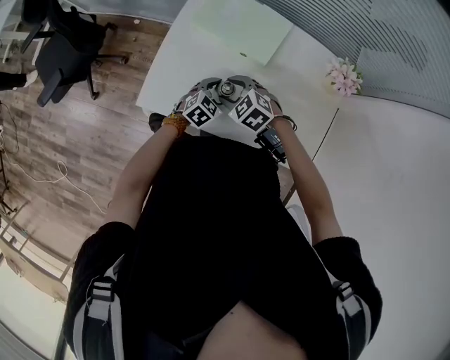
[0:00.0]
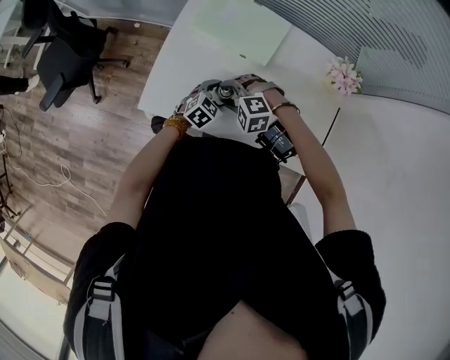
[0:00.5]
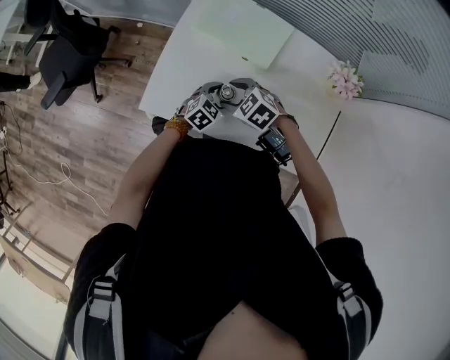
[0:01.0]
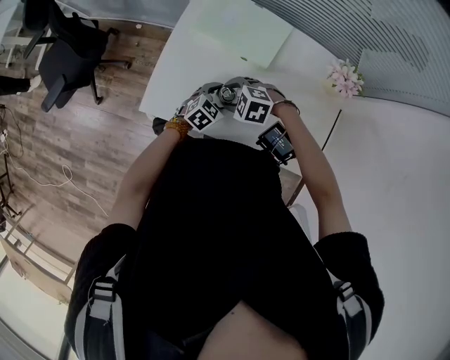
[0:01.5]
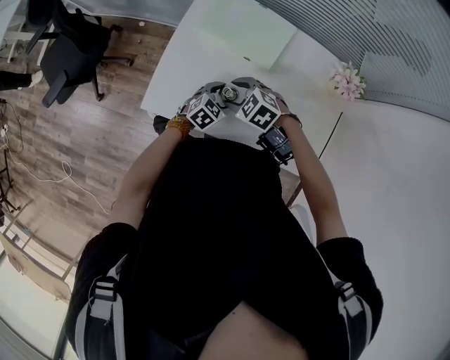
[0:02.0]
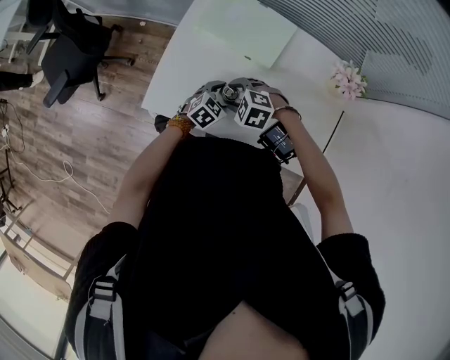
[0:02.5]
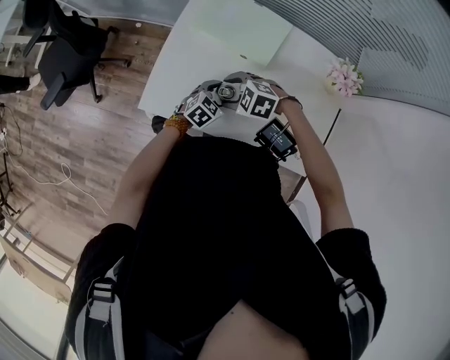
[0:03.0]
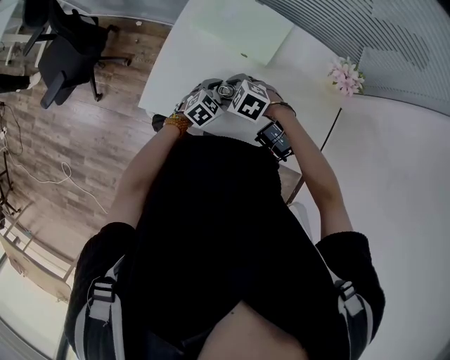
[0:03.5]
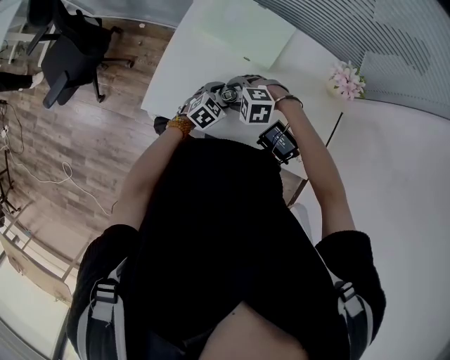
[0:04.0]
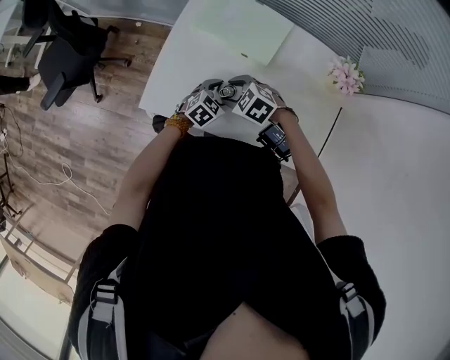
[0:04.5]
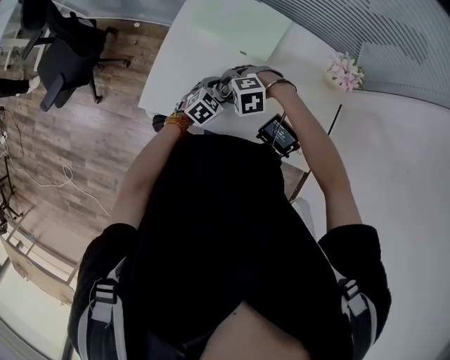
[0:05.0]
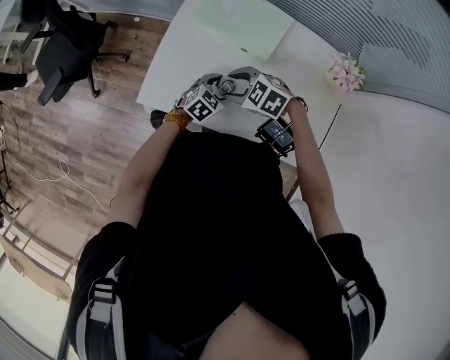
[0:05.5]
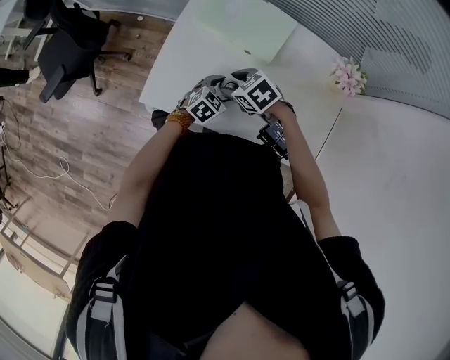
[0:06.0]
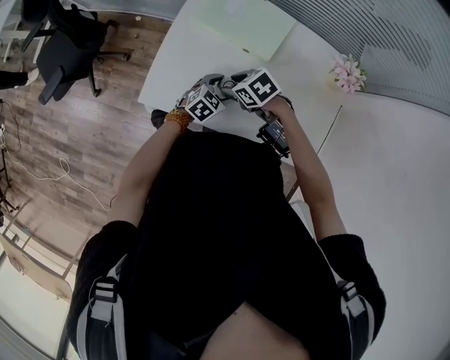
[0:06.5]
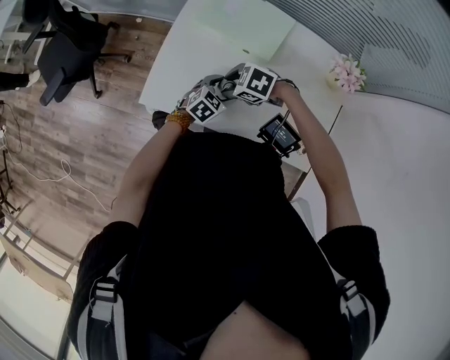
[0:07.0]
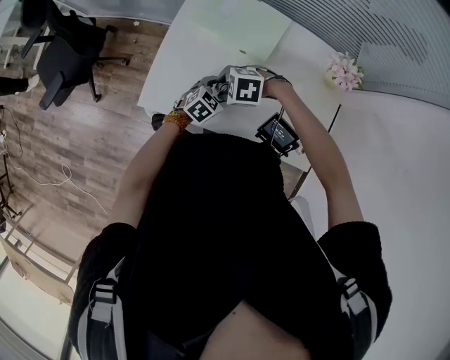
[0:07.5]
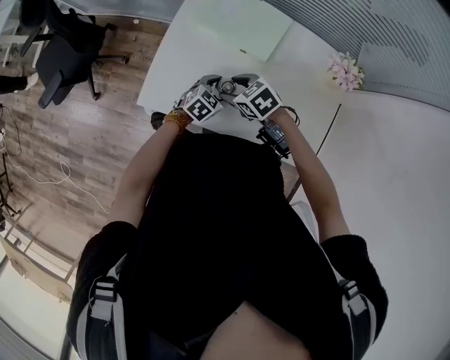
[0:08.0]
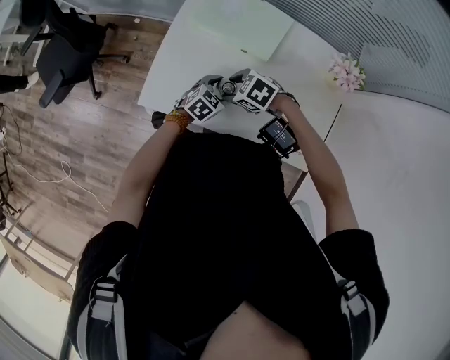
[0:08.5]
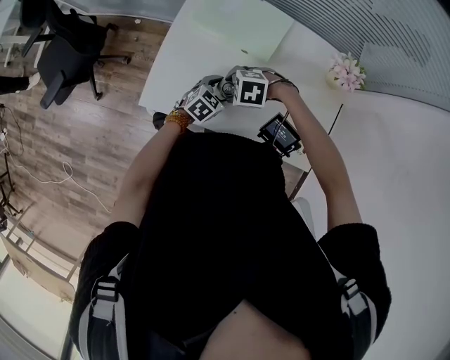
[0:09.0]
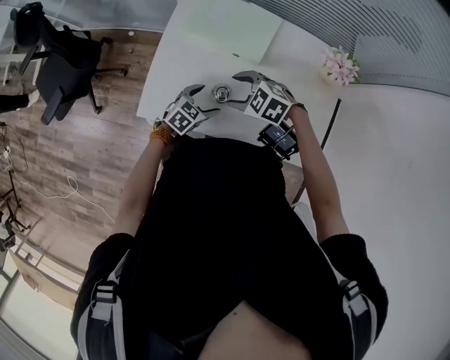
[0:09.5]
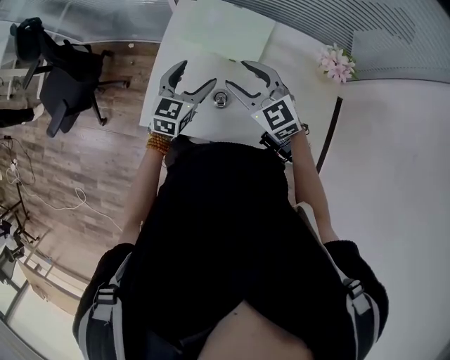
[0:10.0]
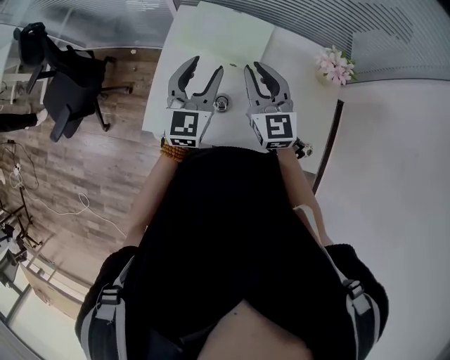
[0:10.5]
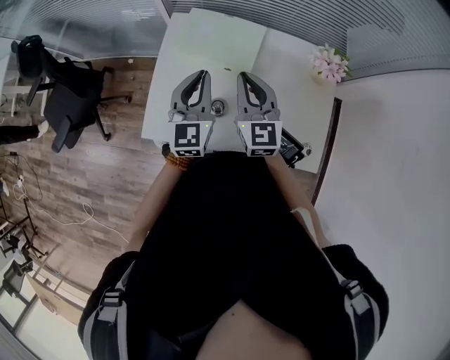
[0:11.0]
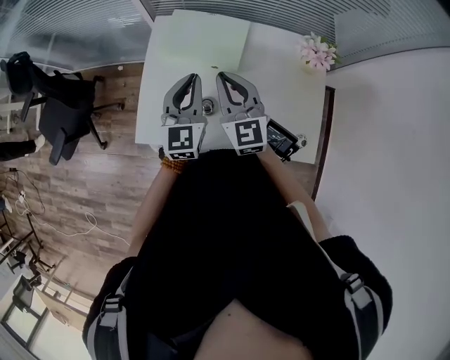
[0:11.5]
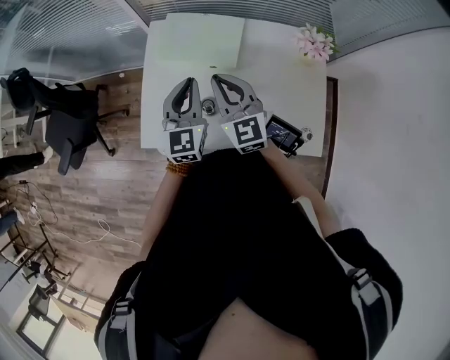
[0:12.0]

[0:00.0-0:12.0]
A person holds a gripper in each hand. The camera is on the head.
0:02.0 to 0:04.0: The right gripper changes its angle by about 30 degrees.
0:04.0 to 0:06.0: The right gripper rotates around the line of its fingers by roughly 50 degrees, clockwise from behind.
0:08.0 to 0:10.0: The two grippers go some 15 cm upward. The right gripper tilts its fingers roughly 30 degrees upward, while the left gripper rotates some 30 degrees.
0:10.0 to 0:12.0: The right gripper turns by approximately 30 degrees, and closes up; the left gripper heads upward, covering approximately 5 cm, and closes up.

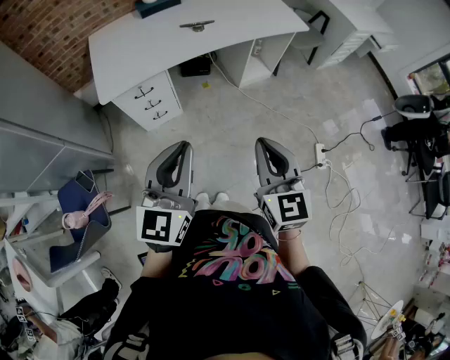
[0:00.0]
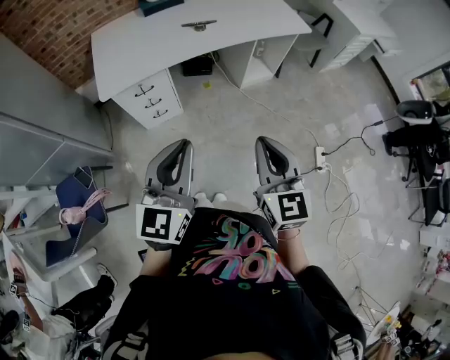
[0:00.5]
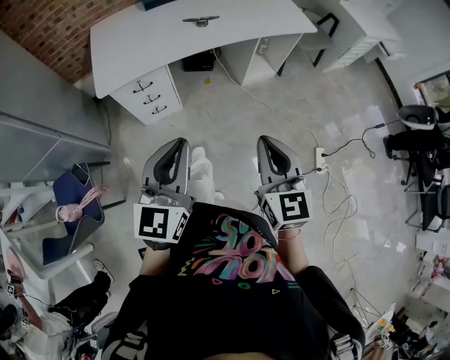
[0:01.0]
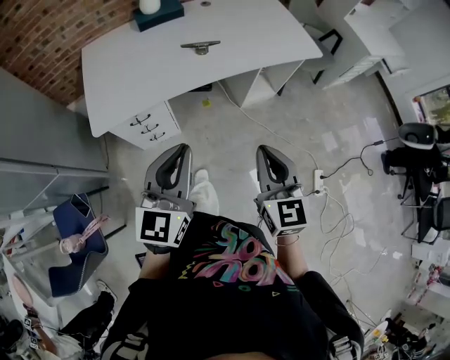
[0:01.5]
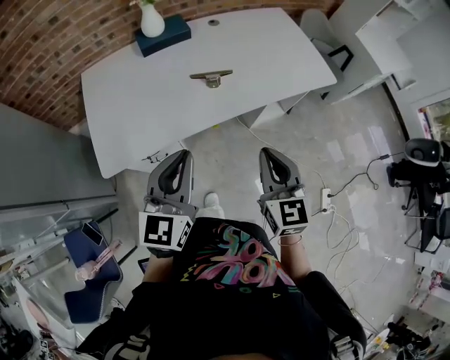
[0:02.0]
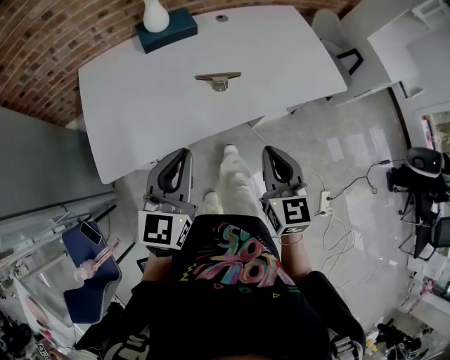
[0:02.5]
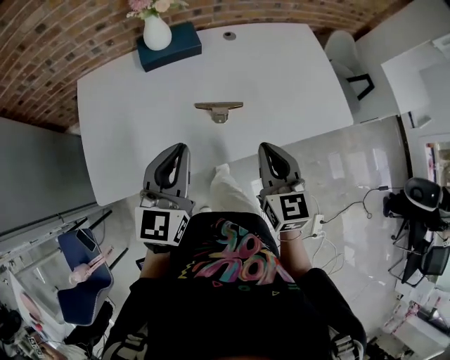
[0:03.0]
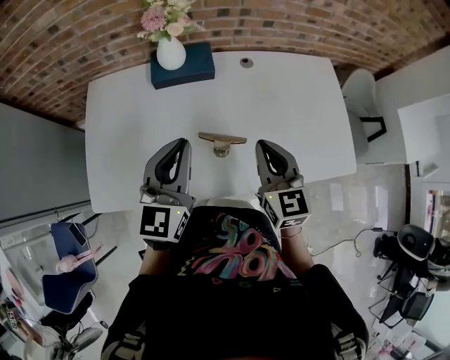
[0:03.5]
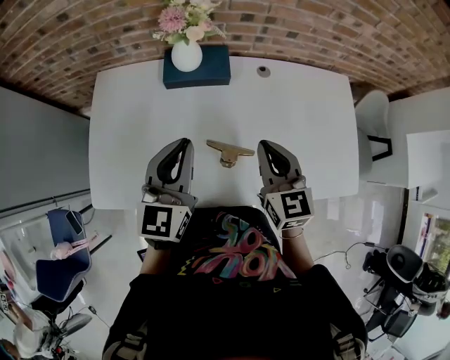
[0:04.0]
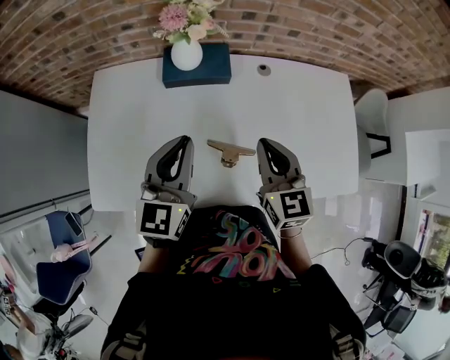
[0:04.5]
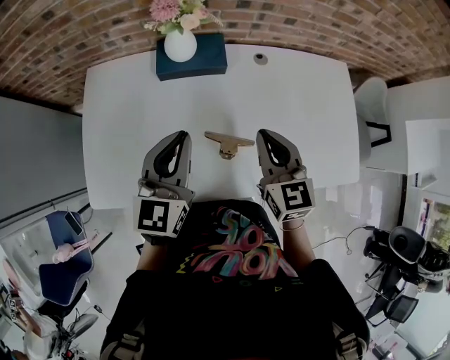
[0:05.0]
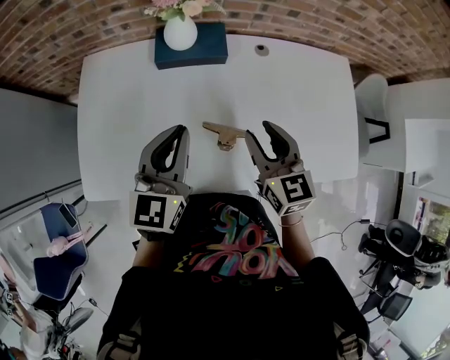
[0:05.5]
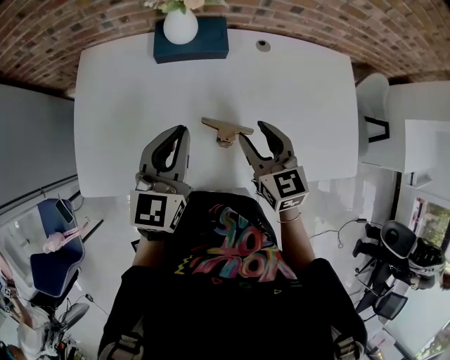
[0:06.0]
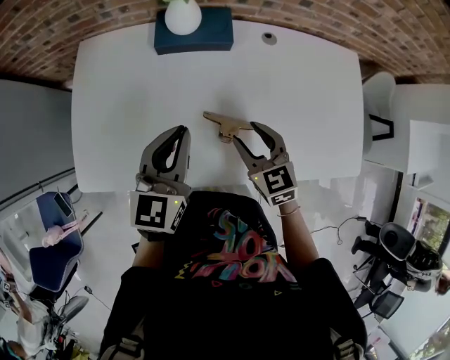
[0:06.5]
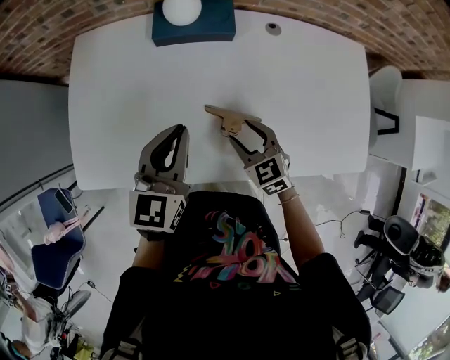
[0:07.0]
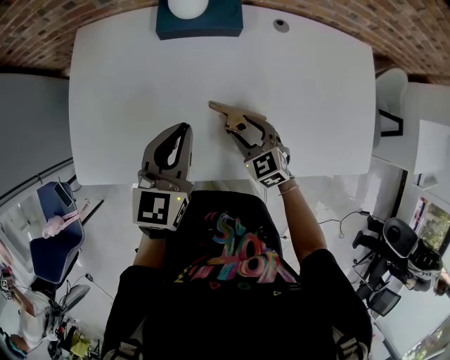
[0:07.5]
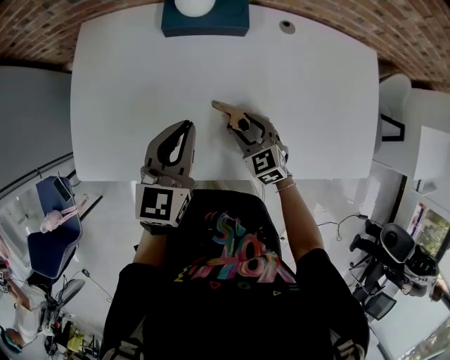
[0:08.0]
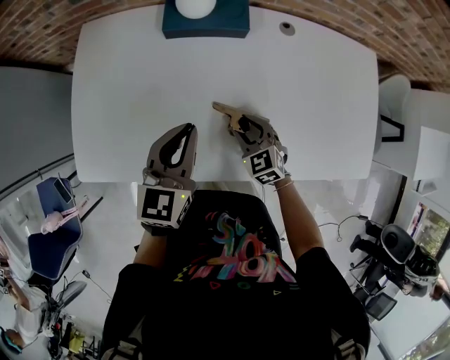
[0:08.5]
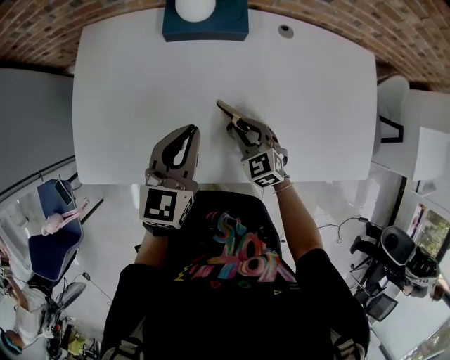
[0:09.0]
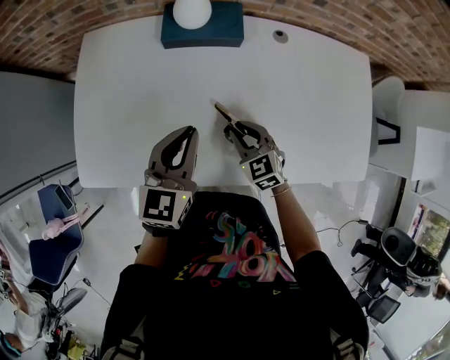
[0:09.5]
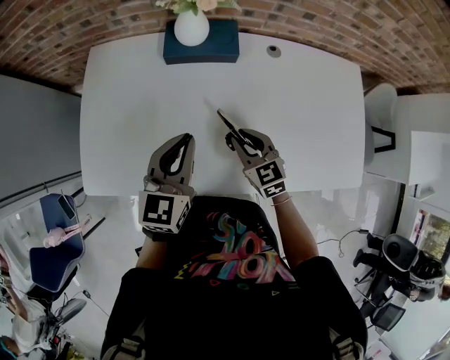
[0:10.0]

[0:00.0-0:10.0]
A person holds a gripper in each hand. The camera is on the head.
0:00.0 to 0:02.0: The grippers both shift forward by roughly 40 cm.
0:02.0 to 0:04.0: The grippers both shift forward by about 40 cm. The right gripper turns by approximately 30 degrees; the left gripper rotates some 20 degrees.
0:04.0 to 0:06.0: Both grippers move downward, approximately 5 cm. The right gripper opens its fingers.
0:06.0 to 0:08.0: The right gripper heads downward, covering roughly 20 cm, and rotates approximately 30 degrees. The left gripper goes roughly 10 cm downward.
0:08.0 to 0:10.0: The right gripper shifts roughly 10 cm upward, and closes.

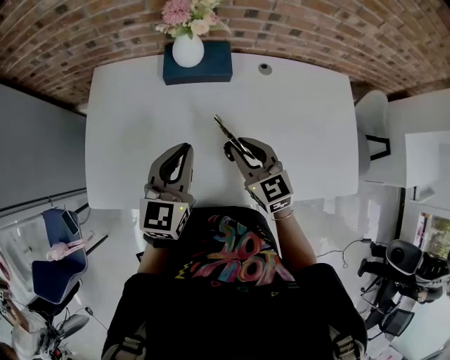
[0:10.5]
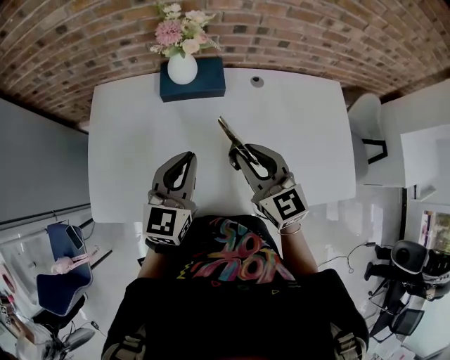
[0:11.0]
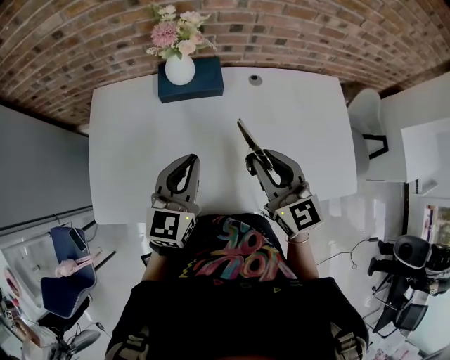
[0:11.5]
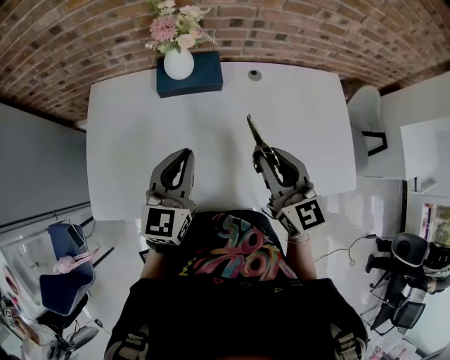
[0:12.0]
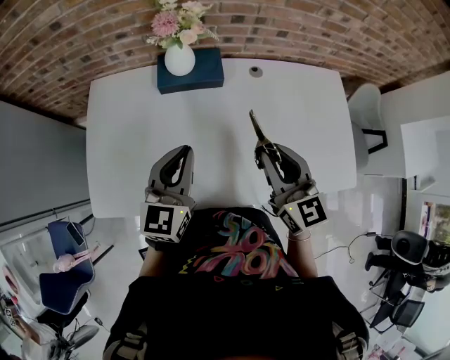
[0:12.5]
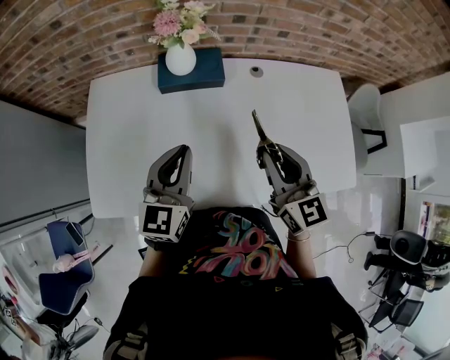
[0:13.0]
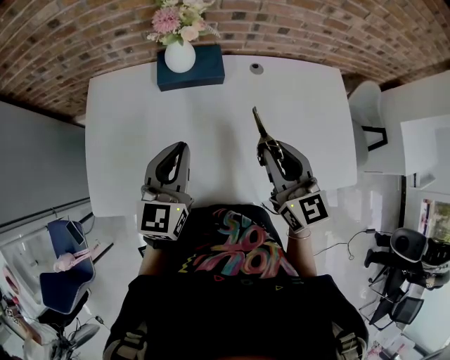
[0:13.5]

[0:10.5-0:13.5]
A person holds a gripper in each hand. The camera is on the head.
0:10.5 to 0:12.0: The right gripper travels upward and to the right by some 15 cm.
0:12.0 to 0:13.5: The grippers move only a little.

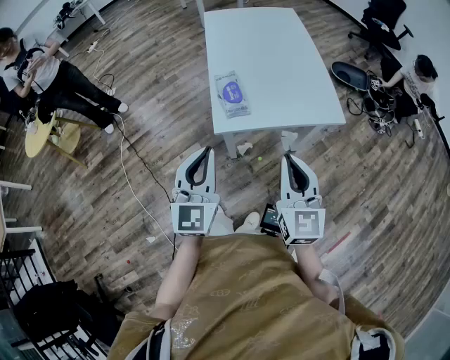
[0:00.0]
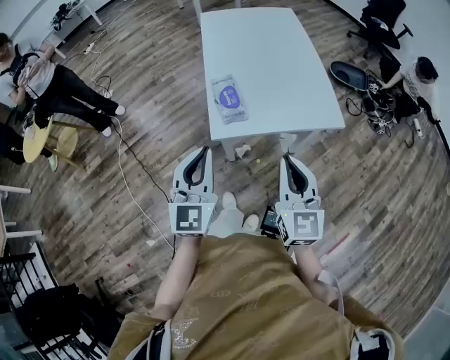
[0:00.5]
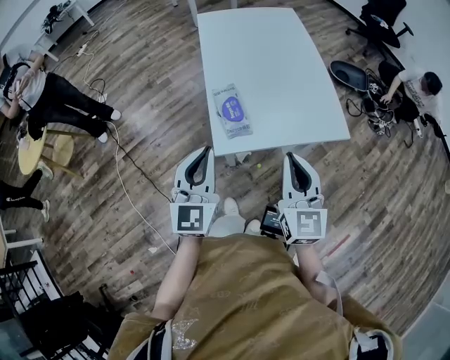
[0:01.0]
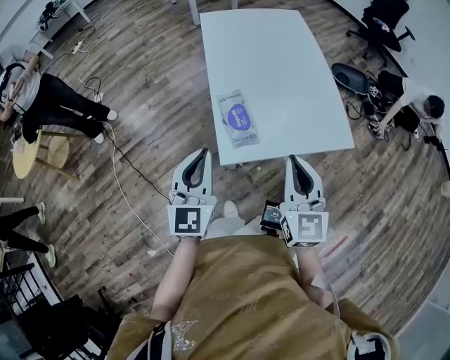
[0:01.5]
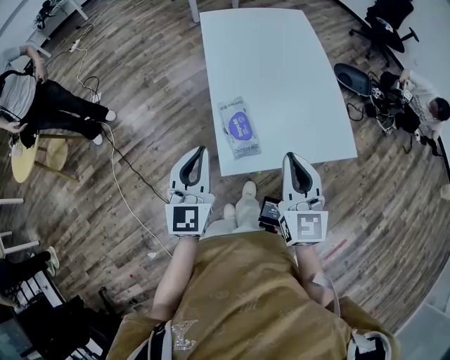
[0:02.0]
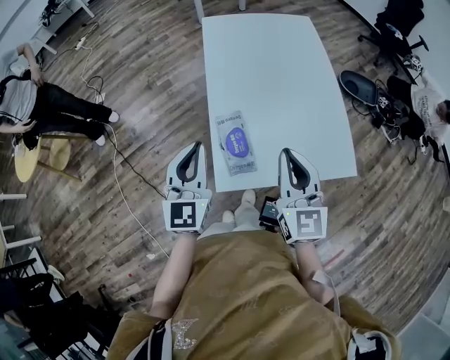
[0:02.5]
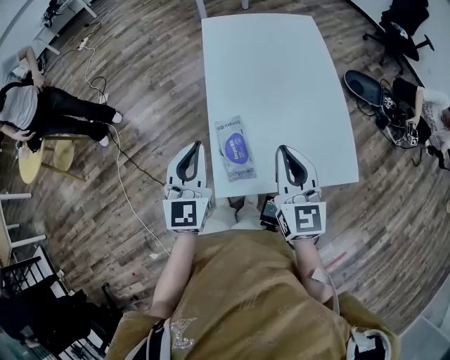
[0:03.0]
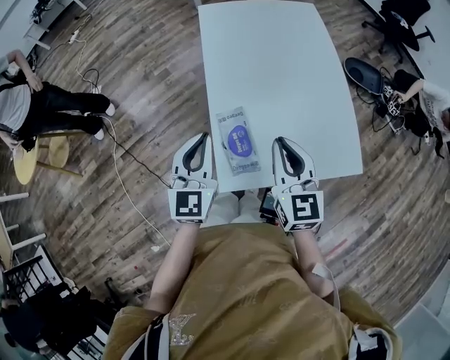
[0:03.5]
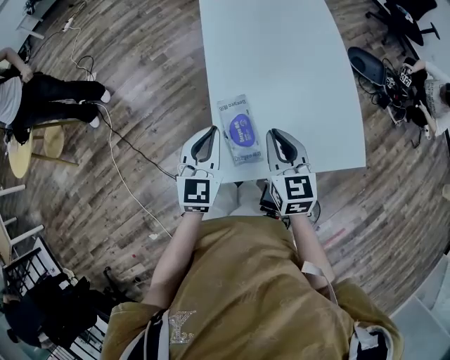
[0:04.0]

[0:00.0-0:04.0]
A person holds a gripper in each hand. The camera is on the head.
0:00.0 to 0:02.0: Both grippers travel together forward, about 20 cm.
0:02.0 to 0:04.0: Both grippers travel together forward and downward, about 15 cm.
